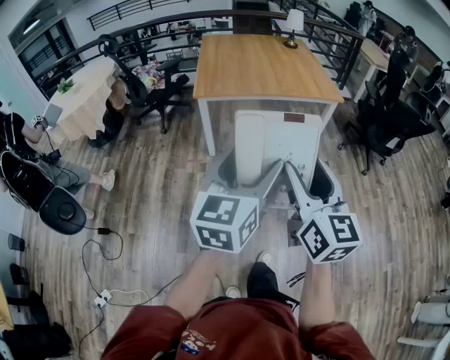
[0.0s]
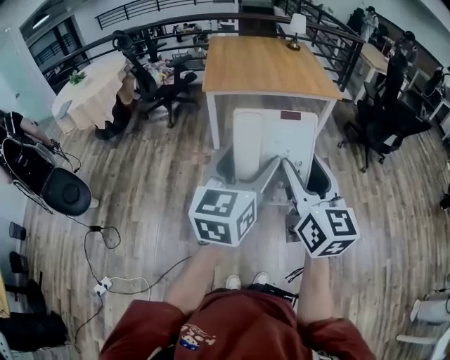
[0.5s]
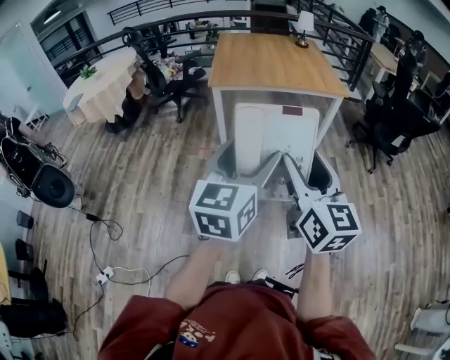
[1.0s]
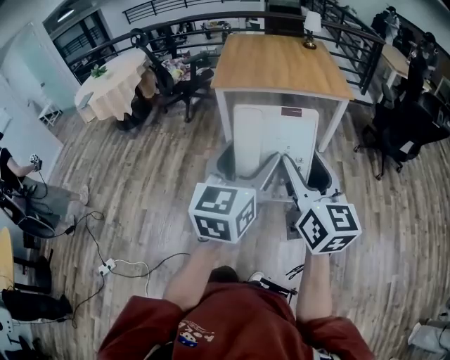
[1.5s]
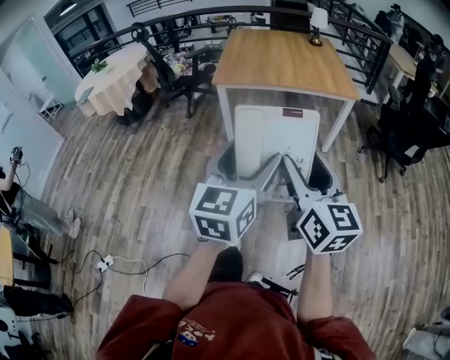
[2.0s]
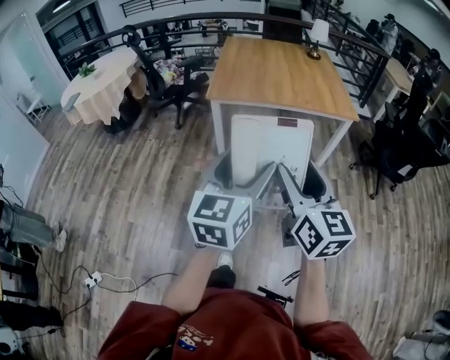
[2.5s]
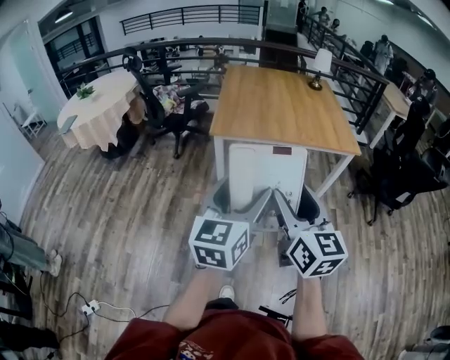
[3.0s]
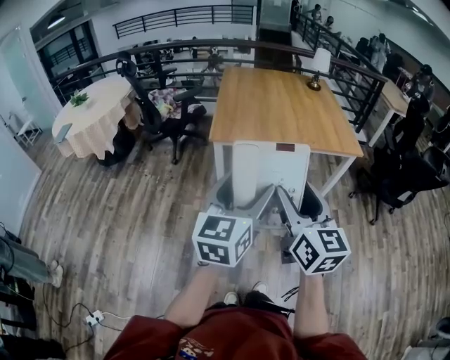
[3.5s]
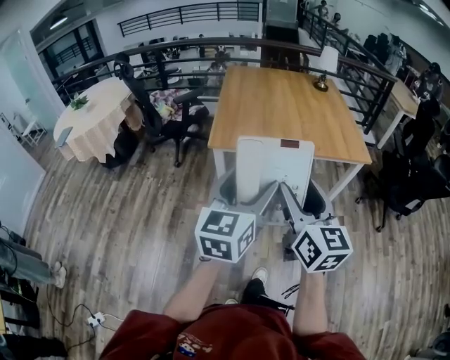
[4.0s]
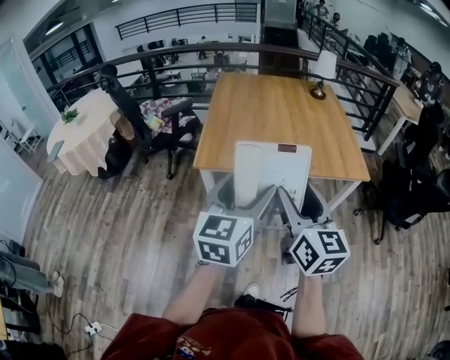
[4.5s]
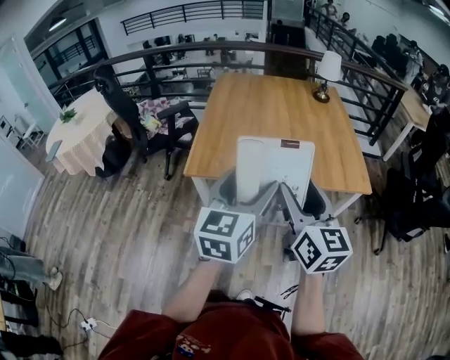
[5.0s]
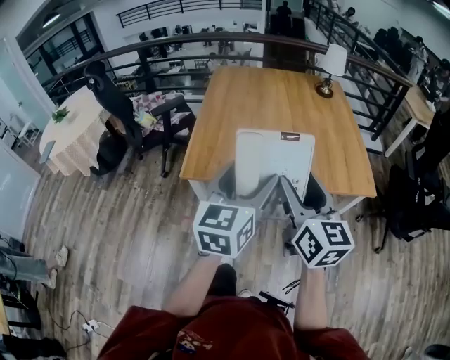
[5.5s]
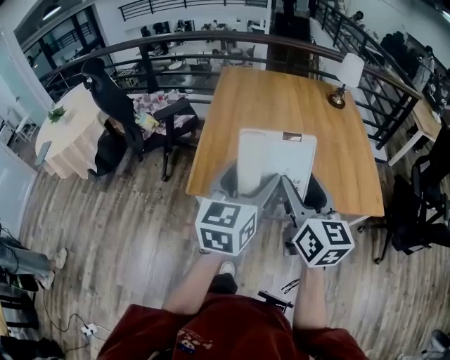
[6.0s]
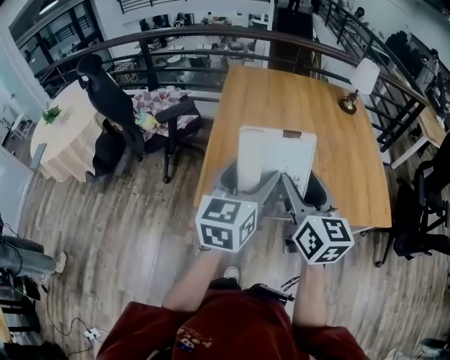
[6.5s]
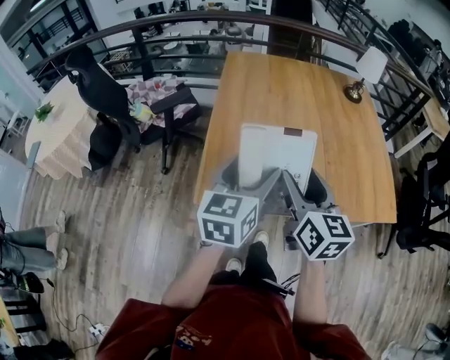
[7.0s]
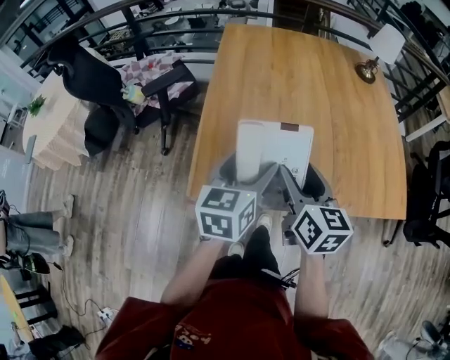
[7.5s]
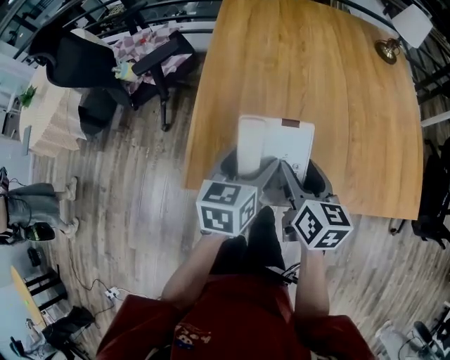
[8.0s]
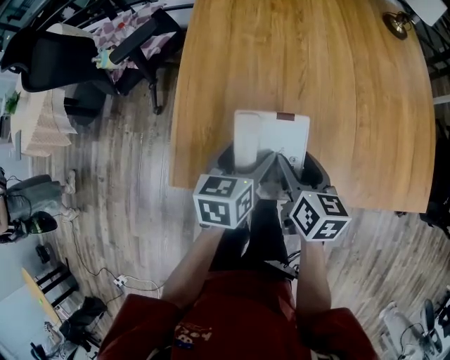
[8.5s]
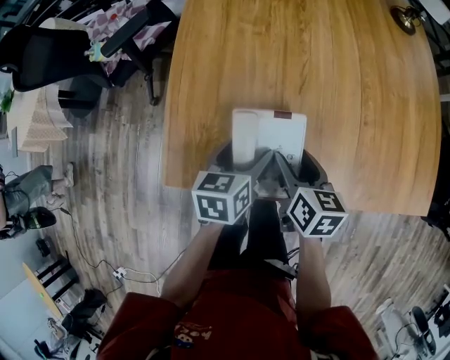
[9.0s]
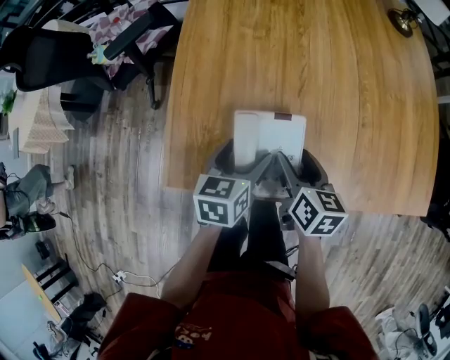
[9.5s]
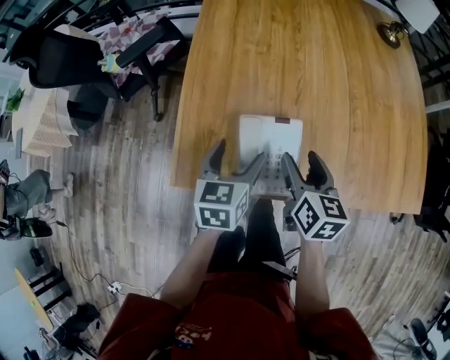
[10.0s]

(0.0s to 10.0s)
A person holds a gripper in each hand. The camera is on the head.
0.0s - 2.0s: The left gripper heads to the right and backward, covering roughly 10 cm, while the right gripper moves to the right, about 10 cm.
2.0s - 4.0s: Both grippers travel together forward, approximately 30 cm.
4.0s - 6.0s: The two grippers go approximately 35 cm forward.
6.0s - 8.0s: The grippers both shift downward and forward by some 30 cm. The left gripper changes its angle by some 30 degrees; the right gripper changes its angle by about 30 degrees.
8.0s - 10.0s: Both grippers travel together downward, roughly 5 cm.

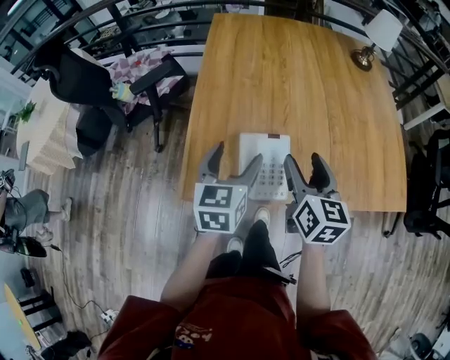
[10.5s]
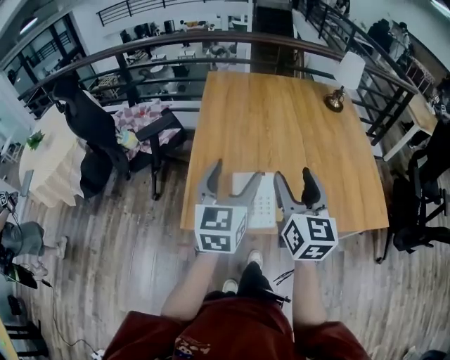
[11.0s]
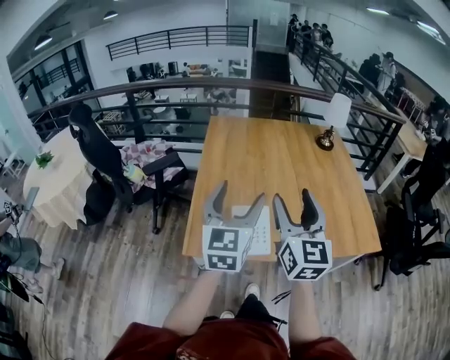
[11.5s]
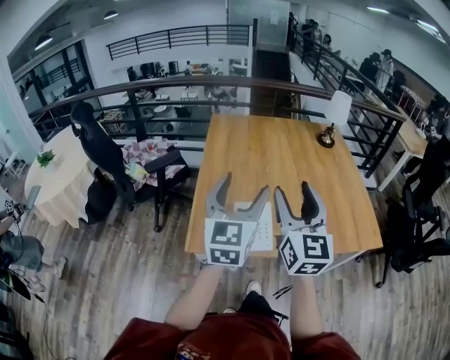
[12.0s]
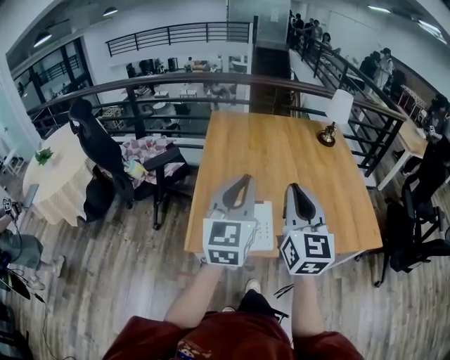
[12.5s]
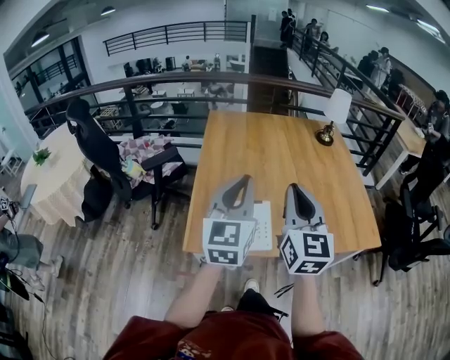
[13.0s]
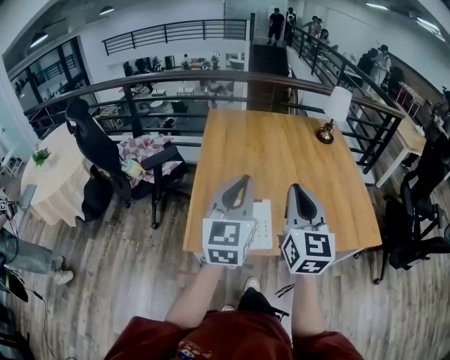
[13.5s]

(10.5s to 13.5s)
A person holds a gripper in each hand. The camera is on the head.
10.5s - 12.0s: The grippers both shift upward by approximately 20 cm. The left gripper rotates some 30 degrees. Meanwhile the right gripper turns by about 30 degrees.
12.0s - 13.5s: The left gripper closes its fingers. The right gripper closes up.

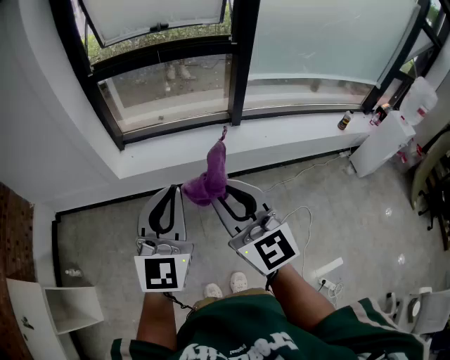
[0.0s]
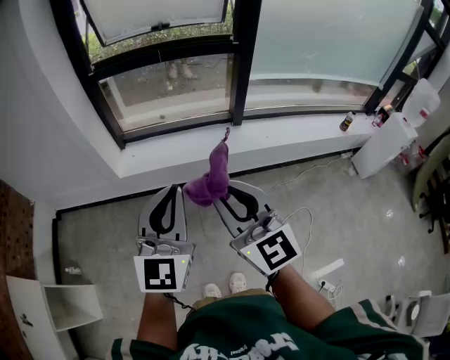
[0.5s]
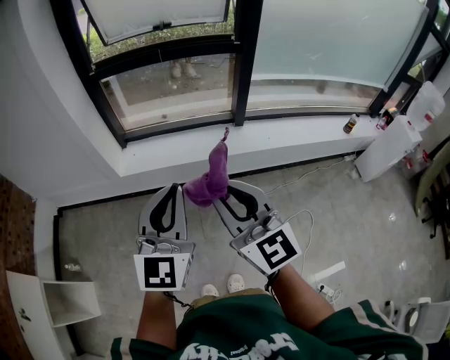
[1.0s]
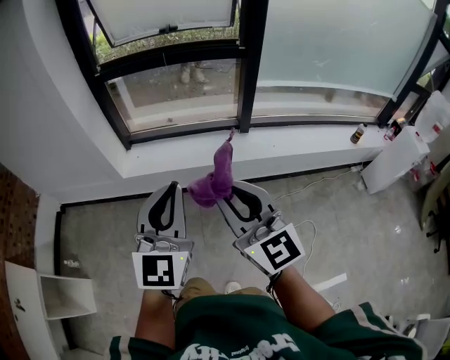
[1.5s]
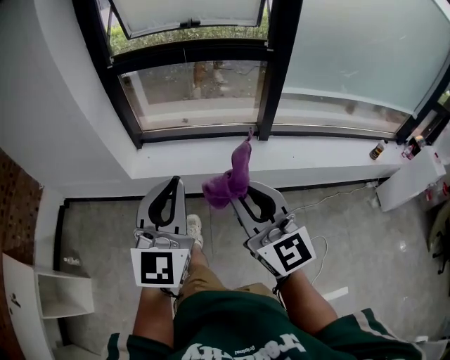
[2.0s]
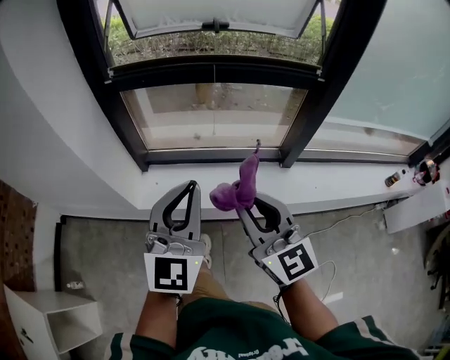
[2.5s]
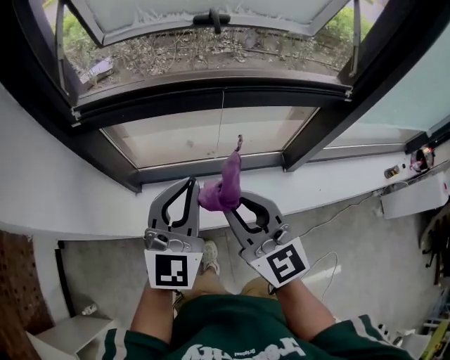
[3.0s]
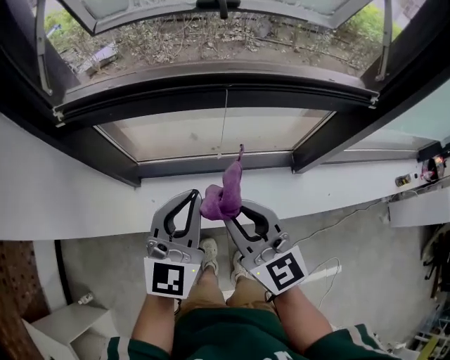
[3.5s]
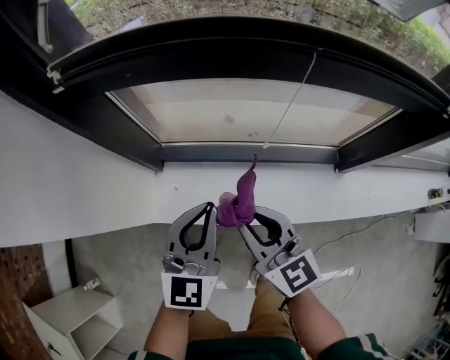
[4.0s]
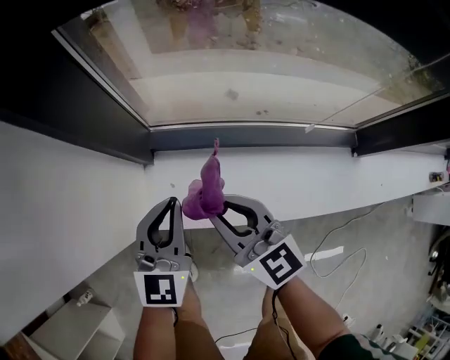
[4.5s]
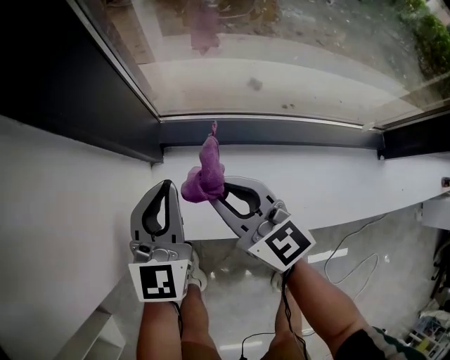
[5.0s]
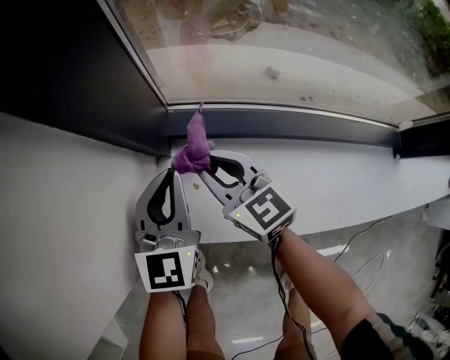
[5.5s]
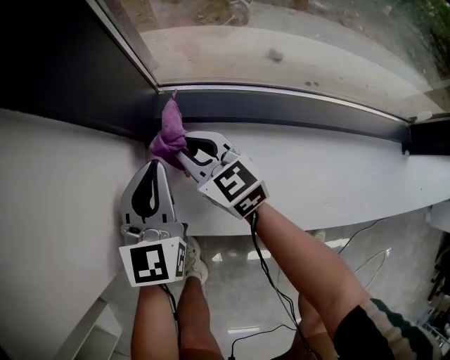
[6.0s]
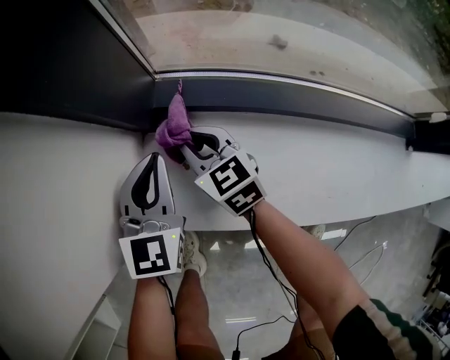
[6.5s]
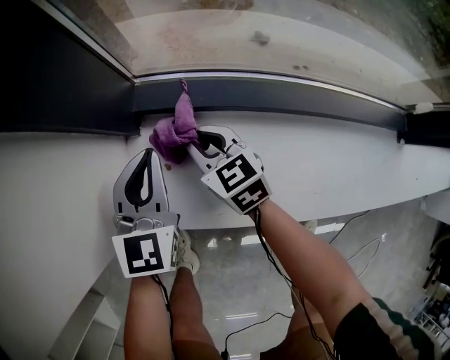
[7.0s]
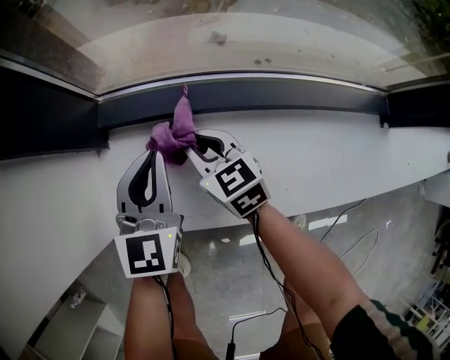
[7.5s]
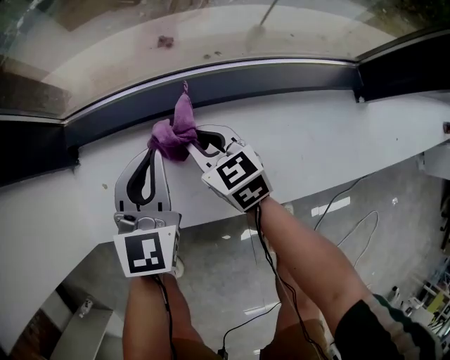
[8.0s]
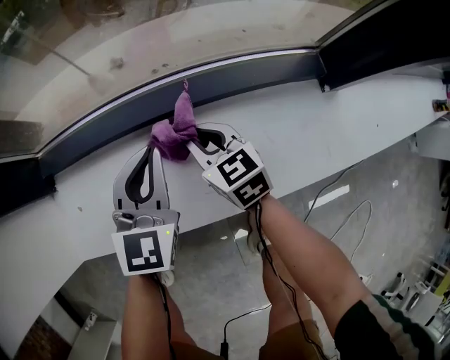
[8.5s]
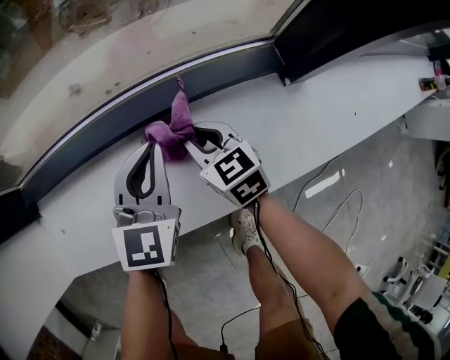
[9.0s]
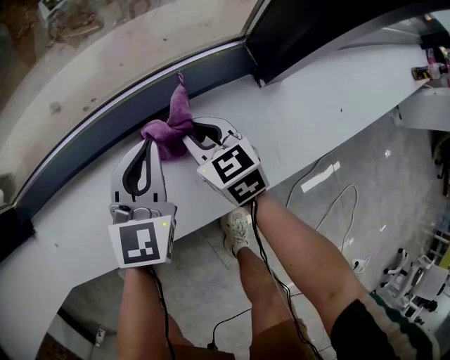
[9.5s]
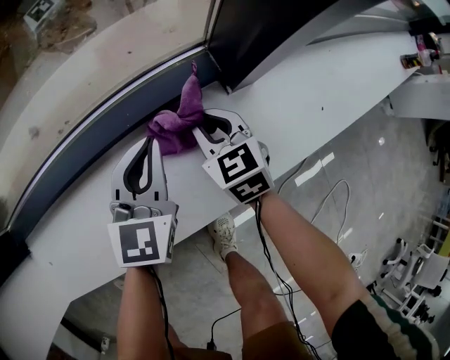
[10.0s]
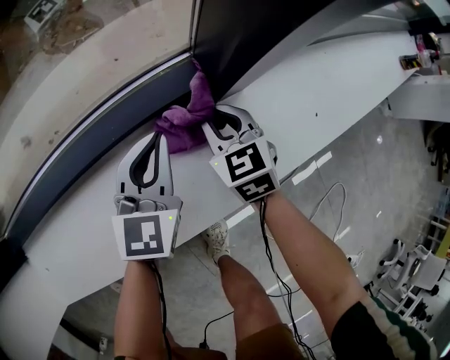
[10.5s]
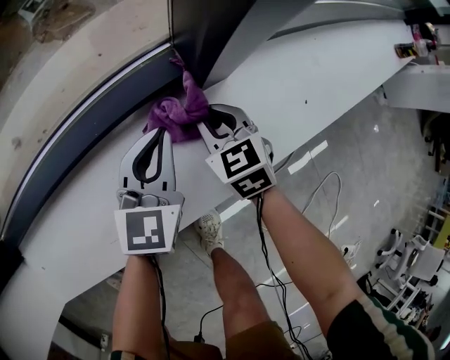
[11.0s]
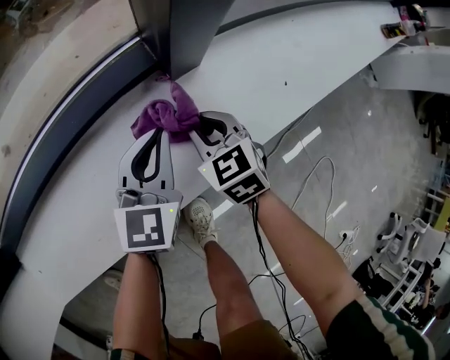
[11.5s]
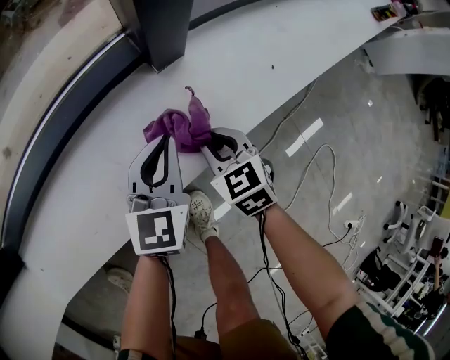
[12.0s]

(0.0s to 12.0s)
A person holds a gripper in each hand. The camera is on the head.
0.0s - 2.0s: The right gripper travels forward and to the right by roughly 10 cm, while the left gripper shifts about 10 cm forward.
2.0s - 4.0s: The pair of grippers is taken forward, some 50 cm. Both grippers travel together downward, about 25 cm. The right gripper changes its angle by some 20 degrees.
4.0s - 6.0s: The right gripper travels downward, forward and to the left by some 50 cm. Meanwhile the left gripper shifts roughly 40 cm downward, to the left and forward, and changes its angle by some 20 degrees.
6.0s - 8.0s: The right gripper travels to the right and backward by some 25 cm, and turns by about 20 degrees, while the left gripper shifts approximately 25 cm to the right.
8.0s - 10.0s: The right gripper shifts by roughly 40 cm, and rotates roughly 30 degrees, while the left gripper ends up about 40 cm from where it was, and rotates about 20 degrees.
10.0s - 12.0s: The two grippers go roughly 15 cm to the right and backward.

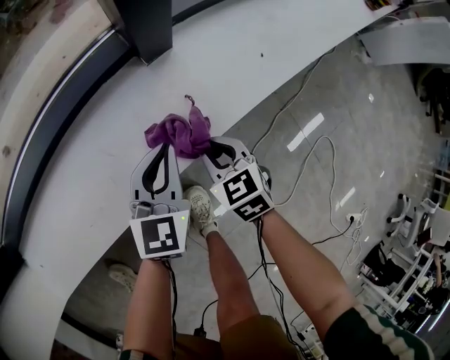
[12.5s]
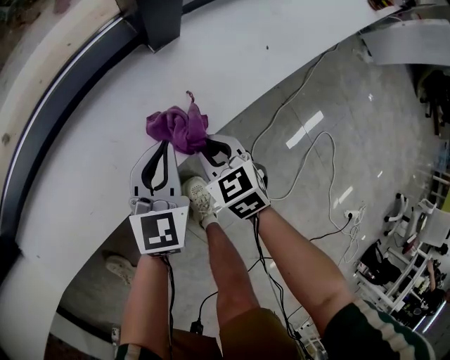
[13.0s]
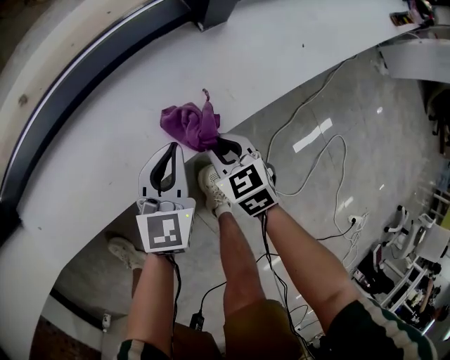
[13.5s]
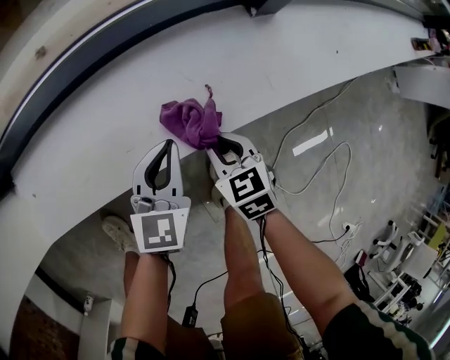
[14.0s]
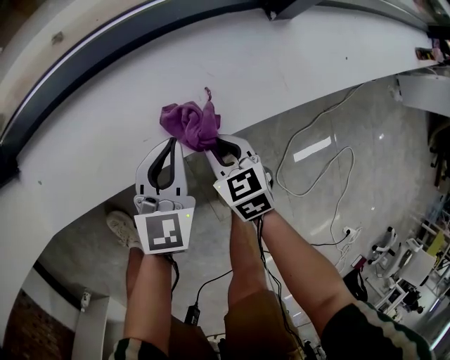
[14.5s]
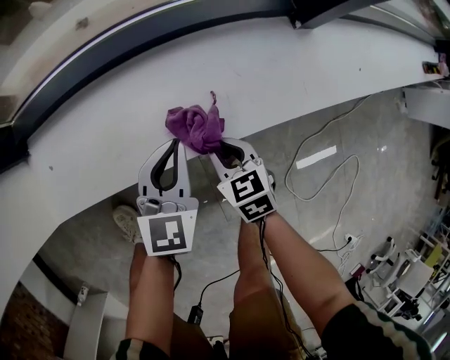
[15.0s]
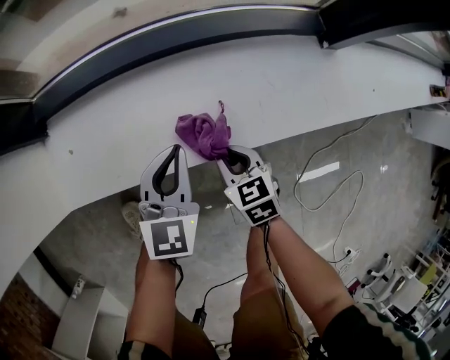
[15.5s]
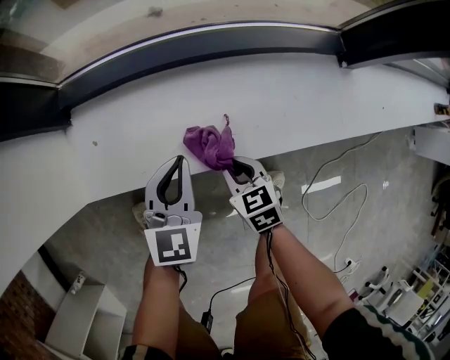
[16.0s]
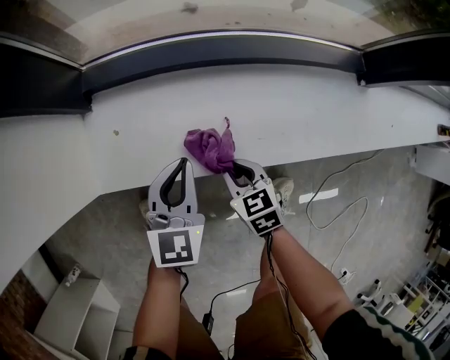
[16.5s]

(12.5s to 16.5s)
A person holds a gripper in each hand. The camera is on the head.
12.5s - 14.5s: The two grippers go about 25 cm to the left.
14.5s - 16.5s: The two grippers go roughly 25 cm to the left.
